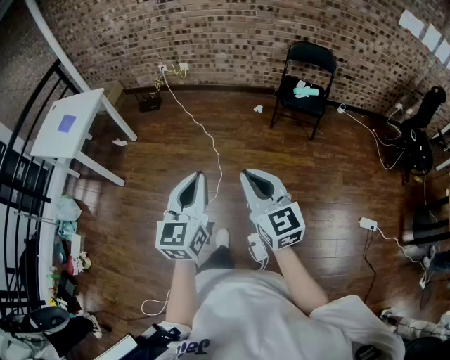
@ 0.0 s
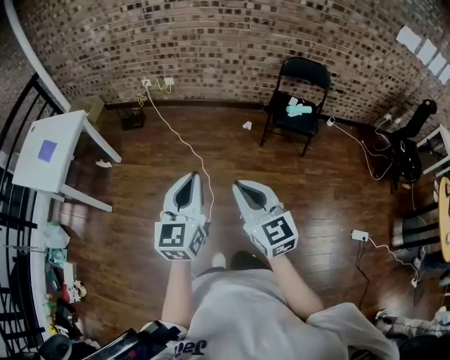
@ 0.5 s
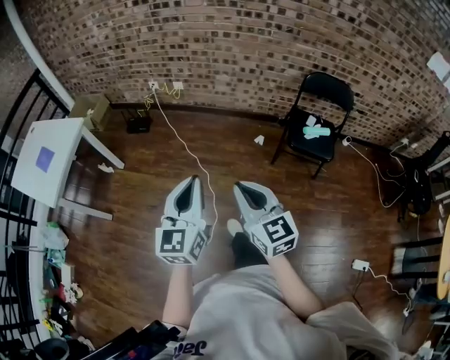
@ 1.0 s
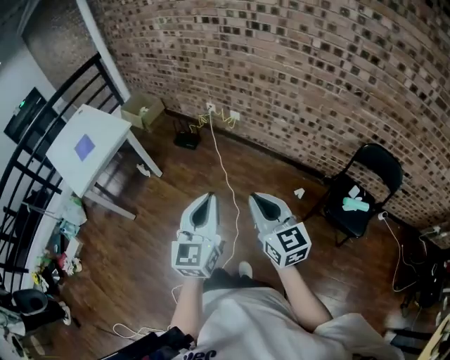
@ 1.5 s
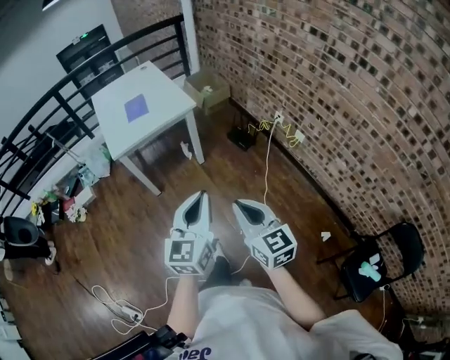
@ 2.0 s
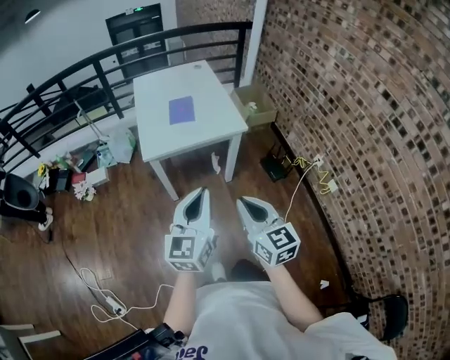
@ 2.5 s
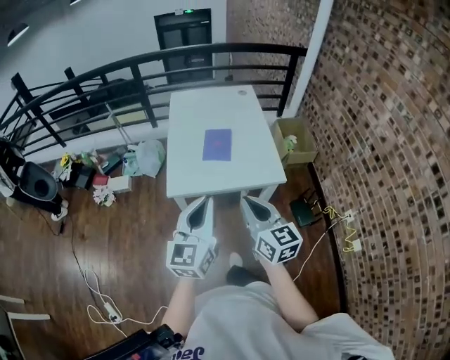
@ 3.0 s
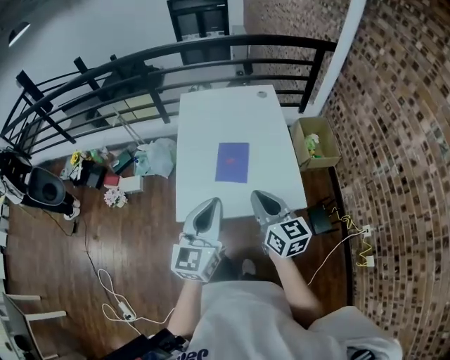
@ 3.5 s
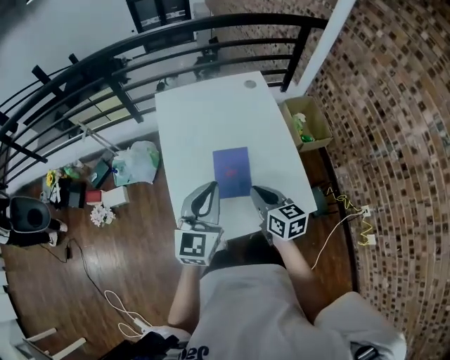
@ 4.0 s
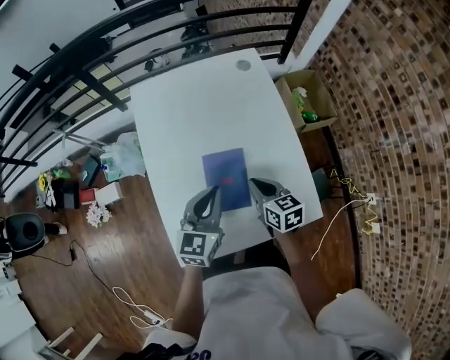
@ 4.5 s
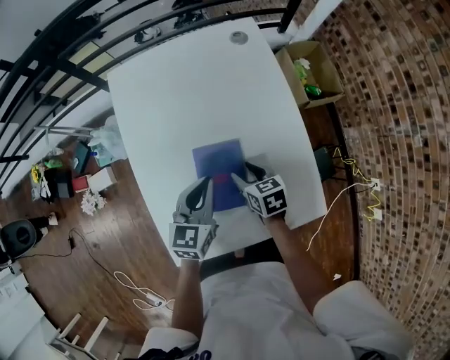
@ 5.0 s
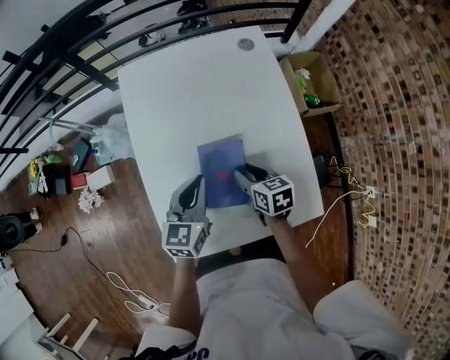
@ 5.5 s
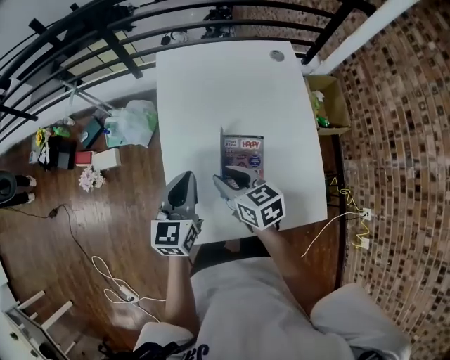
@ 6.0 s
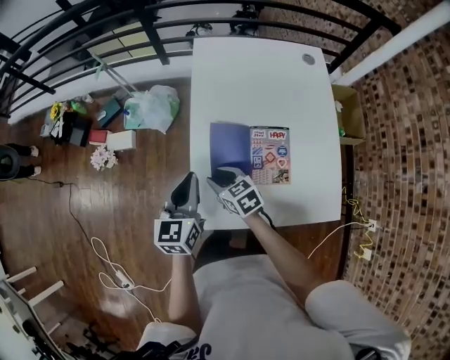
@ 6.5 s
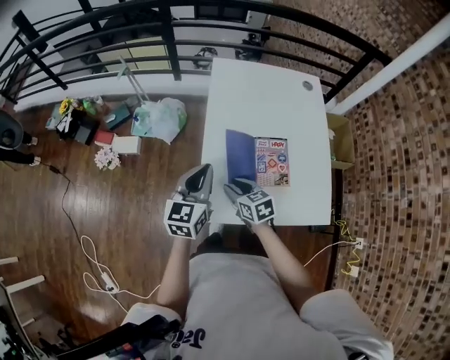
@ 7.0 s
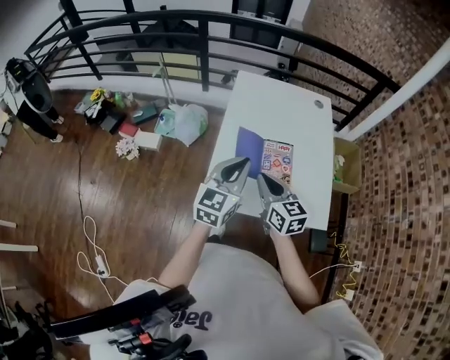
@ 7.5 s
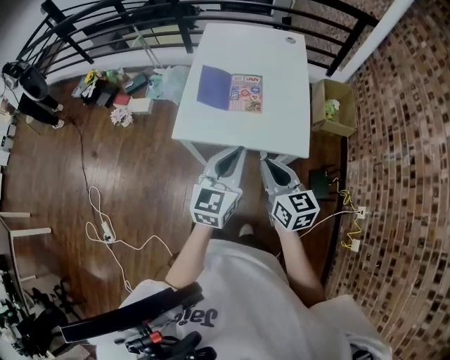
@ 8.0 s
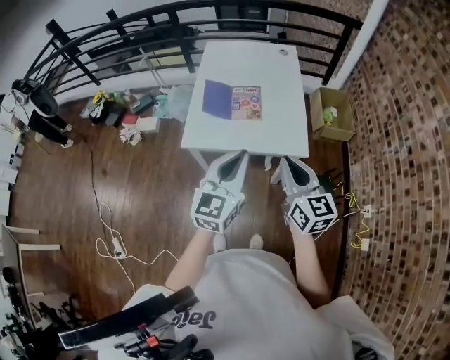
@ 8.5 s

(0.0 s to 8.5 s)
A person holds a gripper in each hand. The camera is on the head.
0.0 s - 2.0 s: Both grippers are carried roughly 60 cm. The left gripper changes its angle by some 50 degrees. The right gripper changes its angle by roughly 50 degrees.
2.0 s - 4.0 s: The two grippers travel together, roughly 80 cm. The right gripper turns by about 30 degrees.
4.0 s - 6.5 s: The left gripper shifts by approximately 20 cm, and rotates some 30 degrees, while the right gripper goes up and down, about 20 cm each way, reversing 2 times, swivels approximately 40 degrees, and opens up.
6.5 s - 8.5 s: Both grippers are carried backward and to the right, roughly 50 cm. The right gripper shifts approximately 30 cm upward, tilts its fingers some 30 degrees upward, and closes up. Meanwhile the left gripper heads upward, covering approximately 20 cm, and changes its angle by roughly 20 degrees.

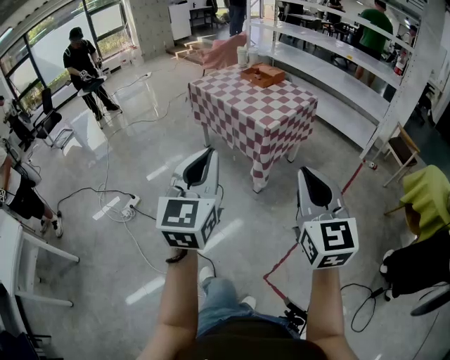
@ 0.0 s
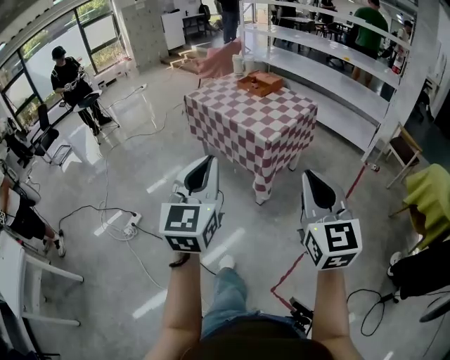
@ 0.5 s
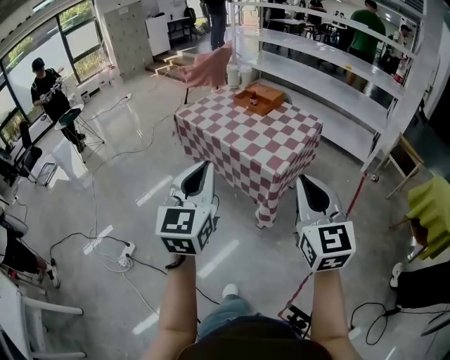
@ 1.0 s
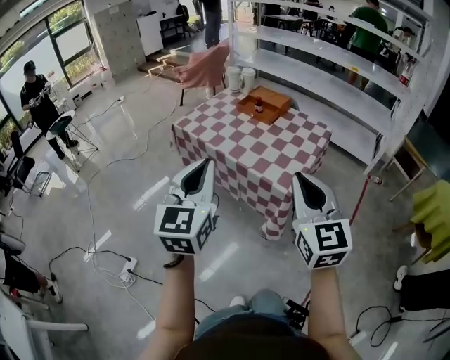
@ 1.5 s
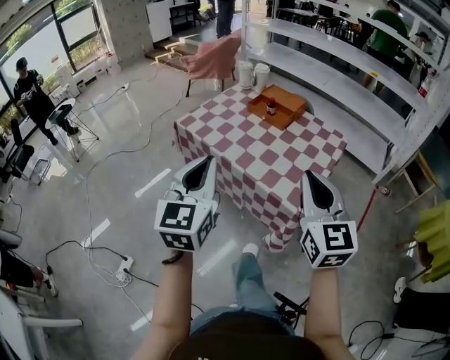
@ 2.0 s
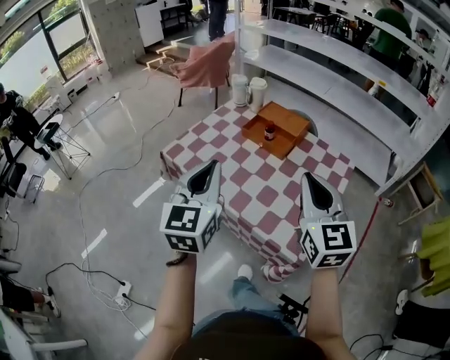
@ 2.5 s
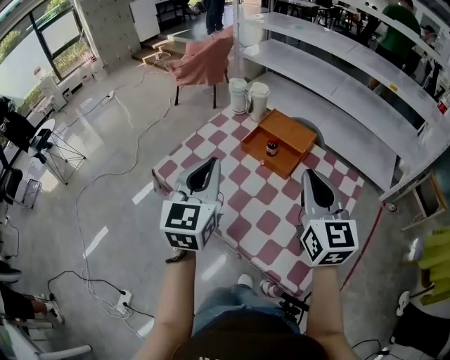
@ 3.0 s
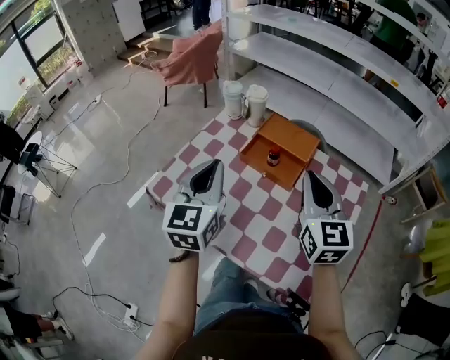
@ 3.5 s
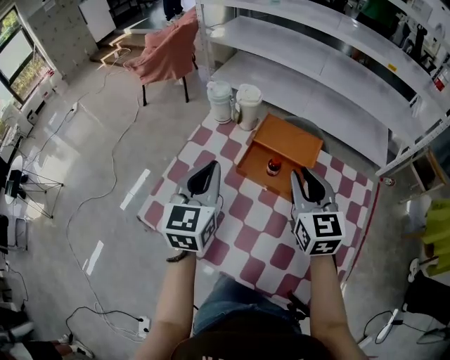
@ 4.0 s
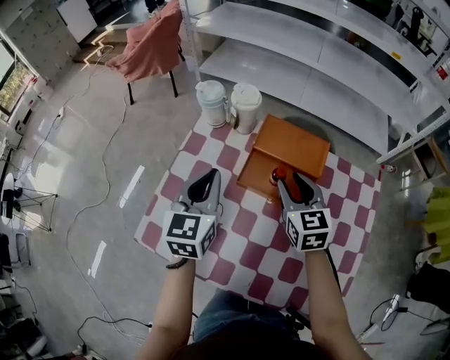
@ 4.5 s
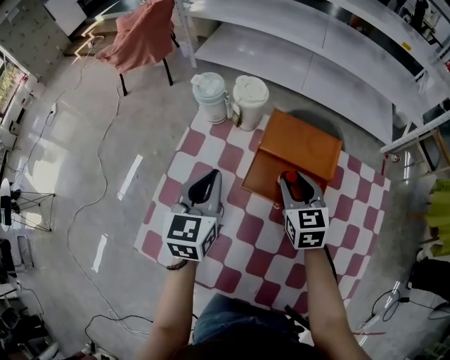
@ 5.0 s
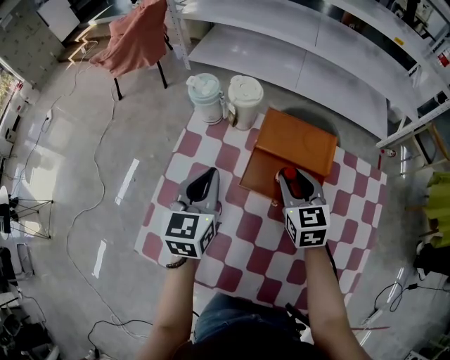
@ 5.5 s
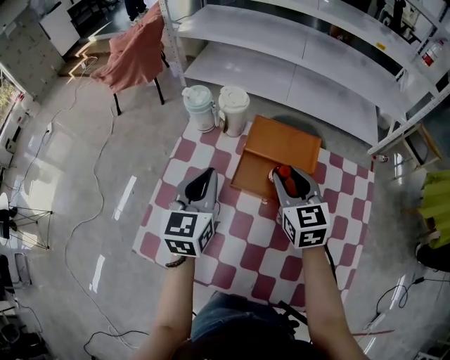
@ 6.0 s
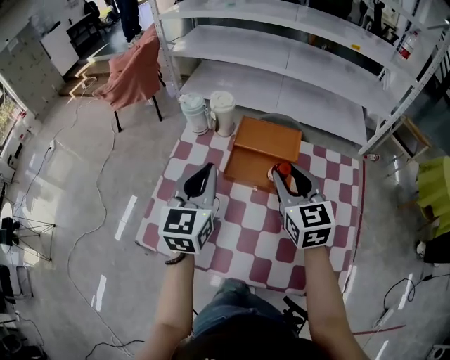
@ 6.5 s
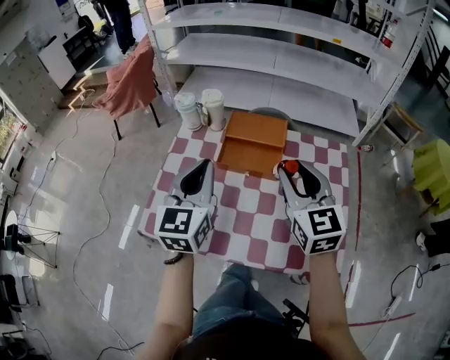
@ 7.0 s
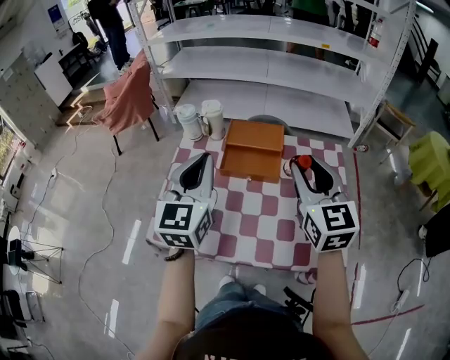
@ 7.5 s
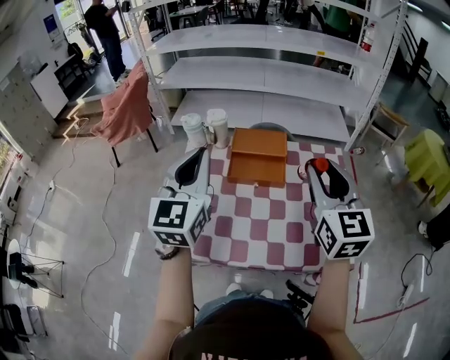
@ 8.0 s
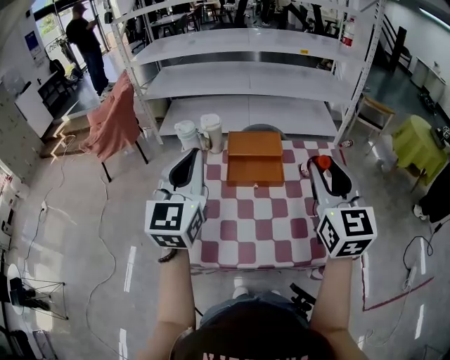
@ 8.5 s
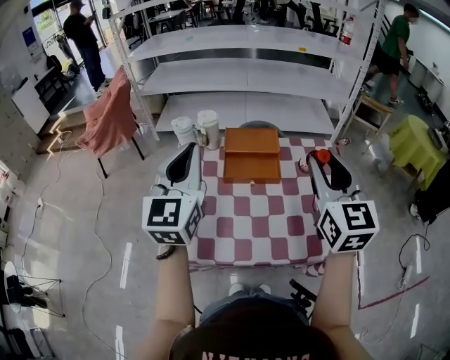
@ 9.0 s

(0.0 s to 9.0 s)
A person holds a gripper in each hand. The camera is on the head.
0.0 s - 2.0 s: The two grippers travel together, forward, roughly 50 cm.
2.0 s - 4.5 s: The two grippers travel together, forward, about 60 cm. The right gripper changes its angle by approximately 30 degrees, and opens. Meanwhile the left gripper turns by approximately 30 degrees.
4.5 s - 7.0 s: The right gripper travels upward and backward by roughly 20 cm. Meanwhile the left gripper is displaced backward, upward and to the right by some 15 cm.
7.0 s - 9.0 s: The left gripper travels upward and to the left by some 15 cm, while the right gripper is displaced upward and backward by approximately 15 cm, and changes its angle by roughly 20 degrees.

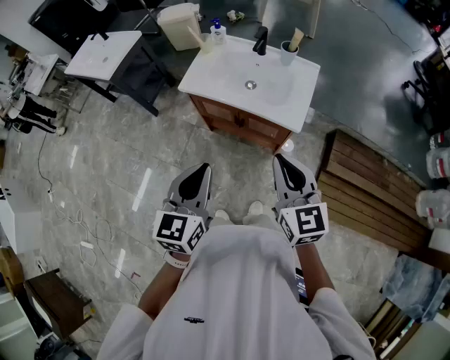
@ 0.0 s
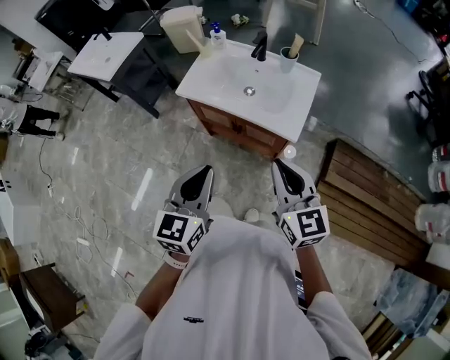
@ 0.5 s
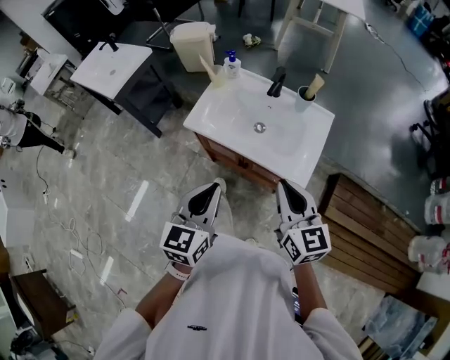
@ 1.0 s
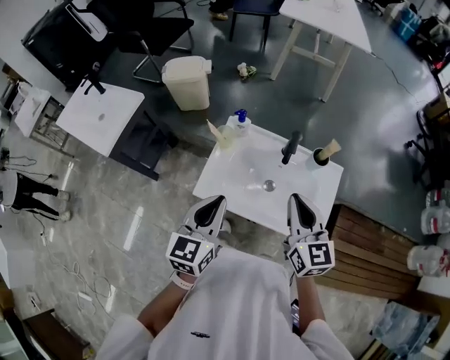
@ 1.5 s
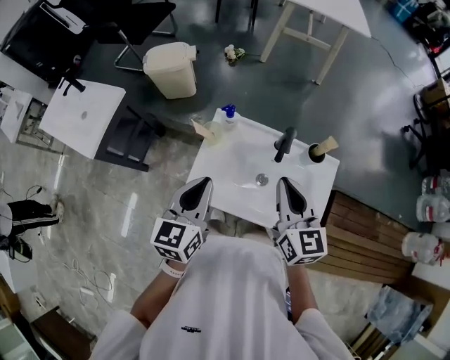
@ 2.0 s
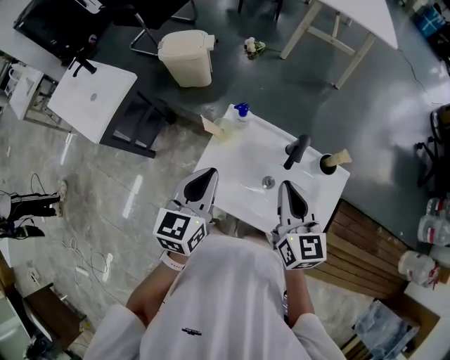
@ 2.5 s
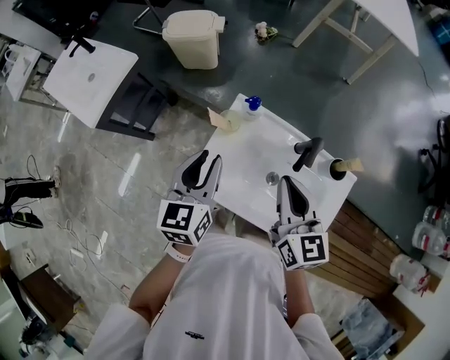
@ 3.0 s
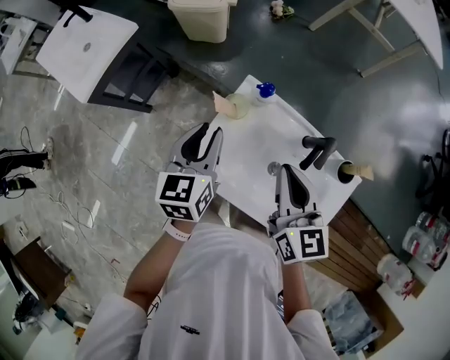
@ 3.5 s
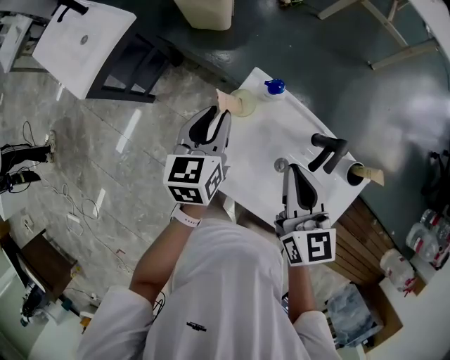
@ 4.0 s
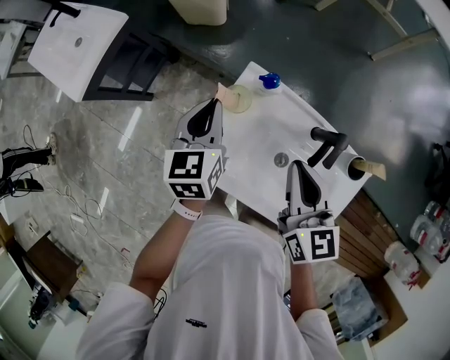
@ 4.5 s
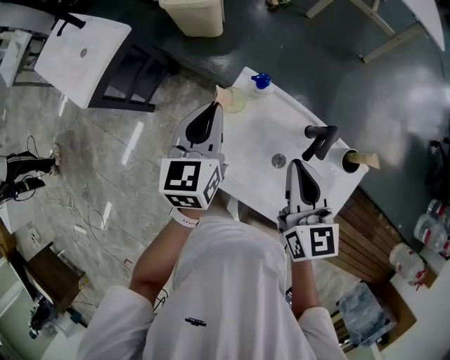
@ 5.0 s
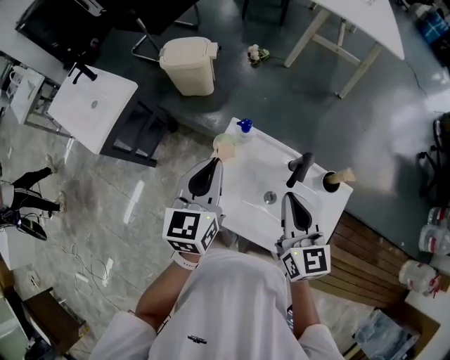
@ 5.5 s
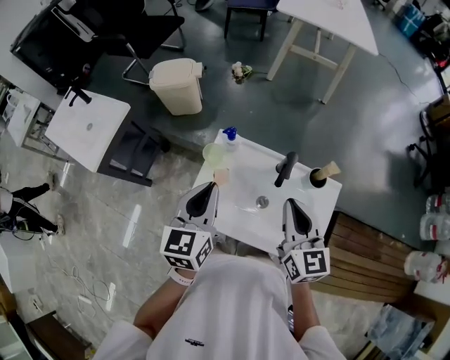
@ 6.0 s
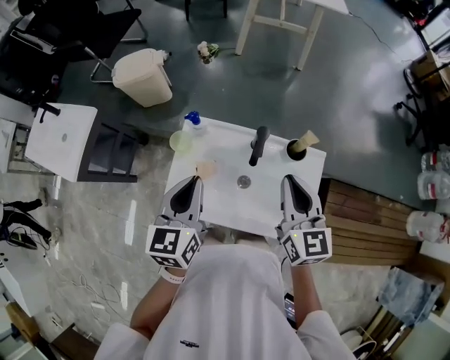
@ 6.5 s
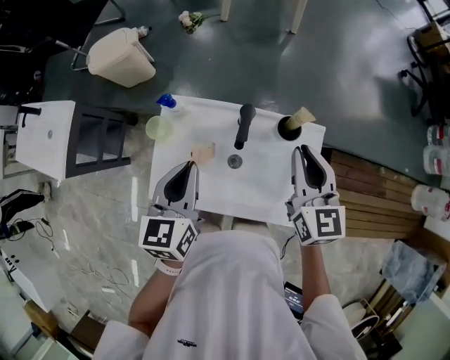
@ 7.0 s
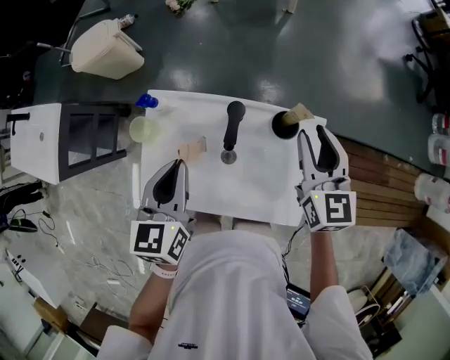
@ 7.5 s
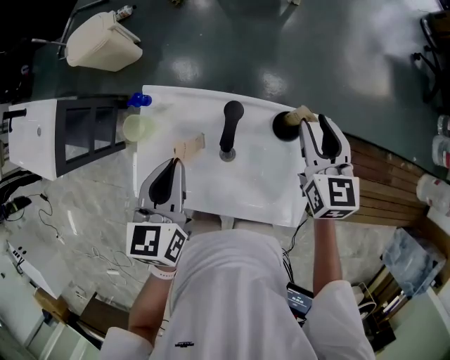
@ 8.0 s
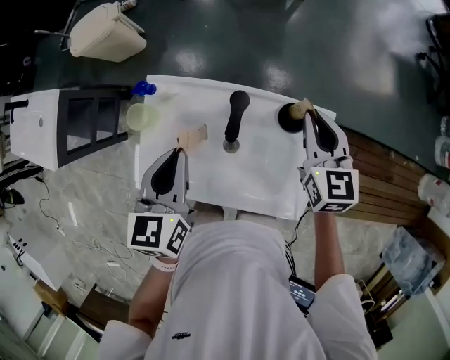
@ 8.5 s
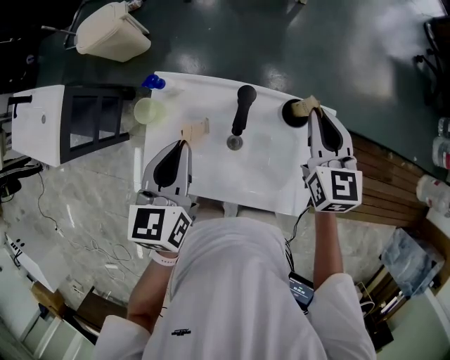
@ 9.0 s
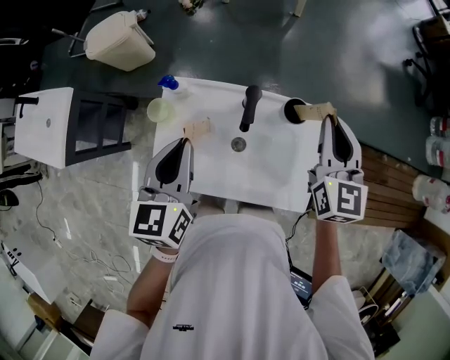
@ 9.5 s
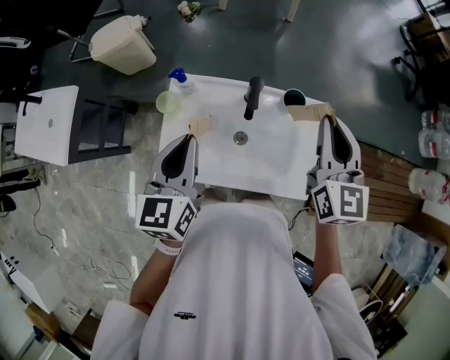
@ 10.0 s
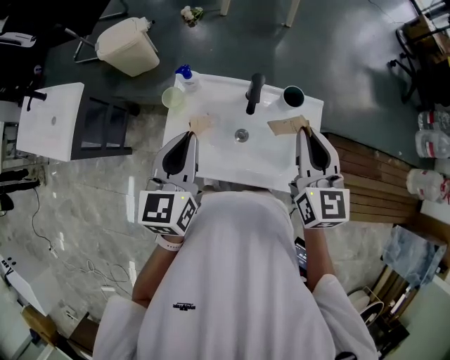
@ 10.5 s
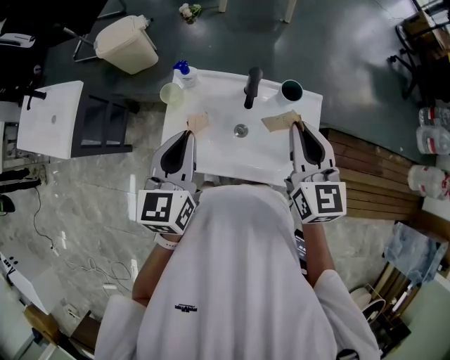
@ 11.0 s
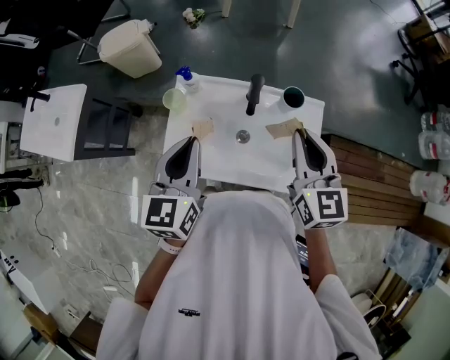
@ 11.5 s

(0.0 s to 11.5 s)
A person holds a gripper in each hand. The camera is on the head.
0.0 s - 2.0 s: Both grippers are carried forward, approximately 50 cm.
2.0 s - 4.0 s: The right gripper shifts about 15 cm forward, downward and to the left; the left gripper travels forward and downward by roughly 20 cm, swivels roughly 20 degrees, and opens up.
4.0 s - 6.0 s: The left gripper heads upward, backward and to the right, covering some 20 cm, and closes. The right gripper goes some 15 cm backward, to the right and upward.
6.0 s - 7.5 s: The left gripper moves to the right, downward and forward, about 15 cm. The right gripper moves to the right, forward and downward, about 25 cm, and opens its fingers.
7.5 s - 9.5 s: The left gripper changes place by about 5 cm; the right gripper is displaced upward by some 5 cm, and closes up.
9.5 s - 11.5 s: The right gripper is displaced backward and to the left by roughly 15 cm; the left gripper heads backward, covering roughly 10 cm.
